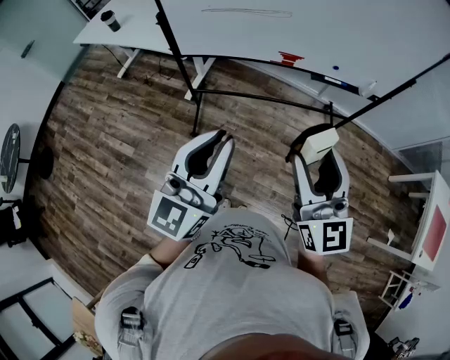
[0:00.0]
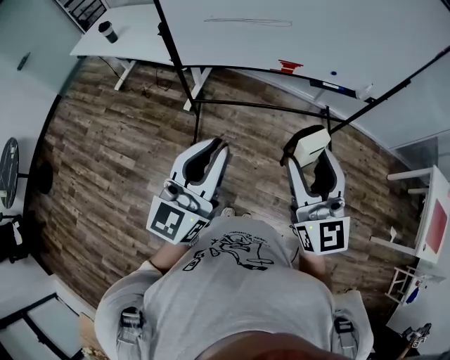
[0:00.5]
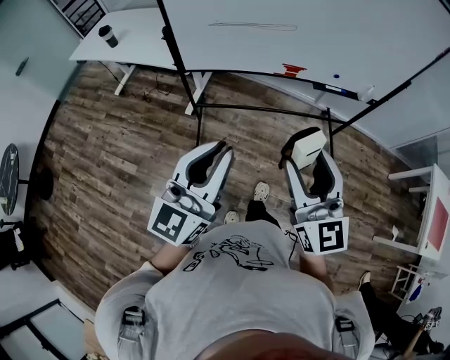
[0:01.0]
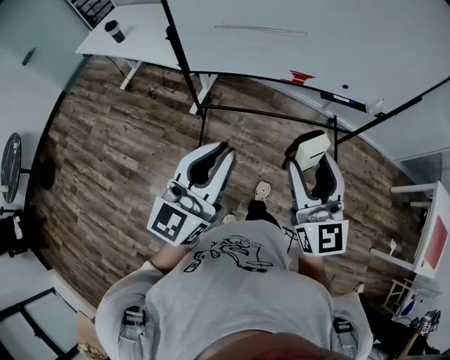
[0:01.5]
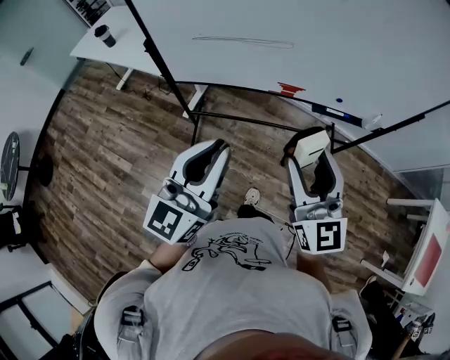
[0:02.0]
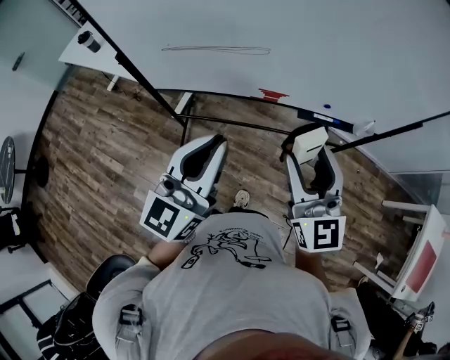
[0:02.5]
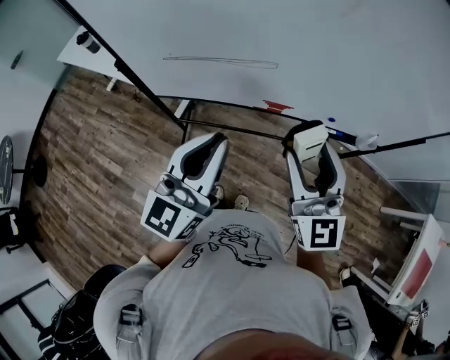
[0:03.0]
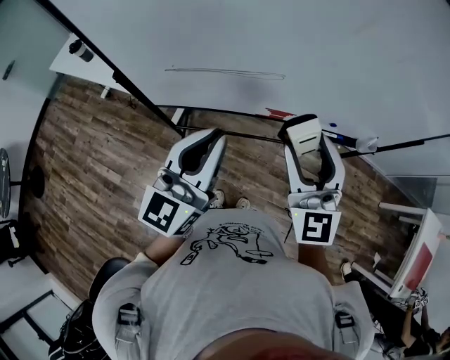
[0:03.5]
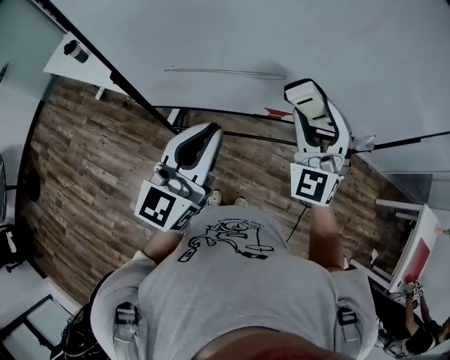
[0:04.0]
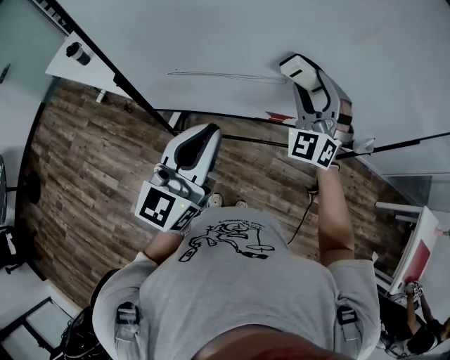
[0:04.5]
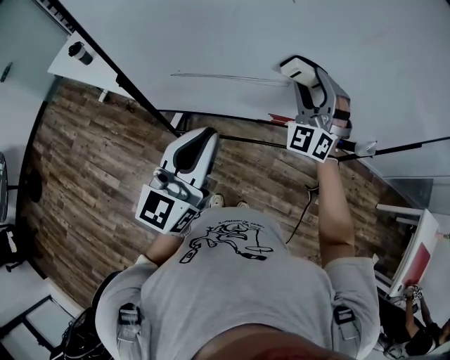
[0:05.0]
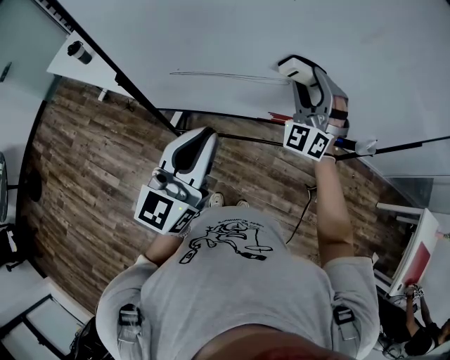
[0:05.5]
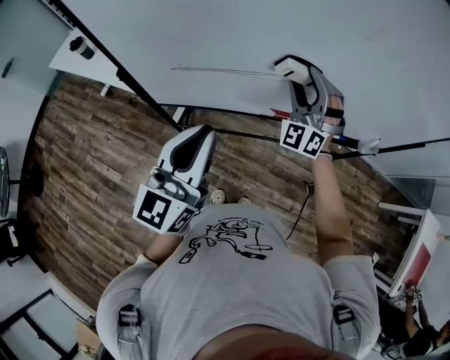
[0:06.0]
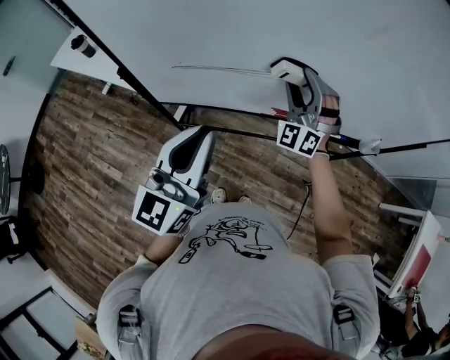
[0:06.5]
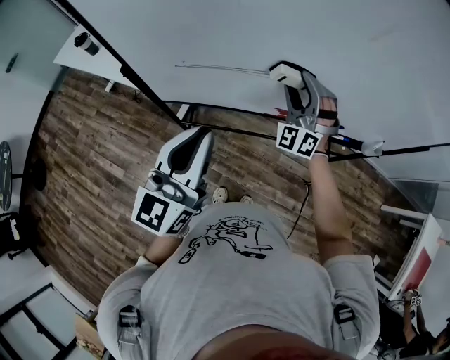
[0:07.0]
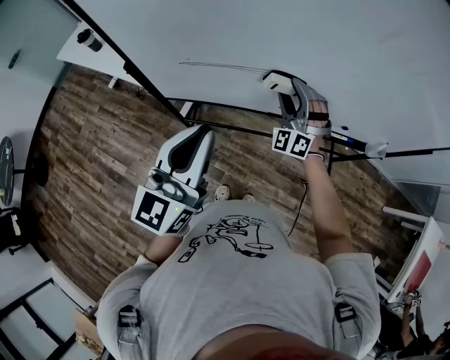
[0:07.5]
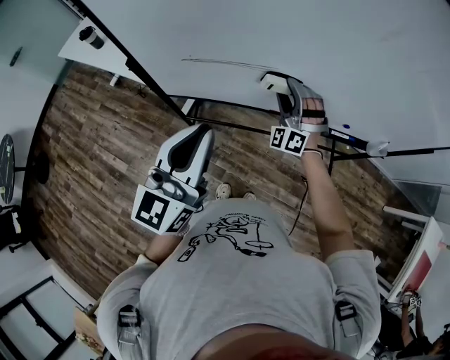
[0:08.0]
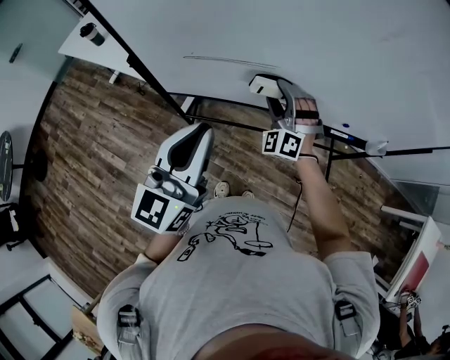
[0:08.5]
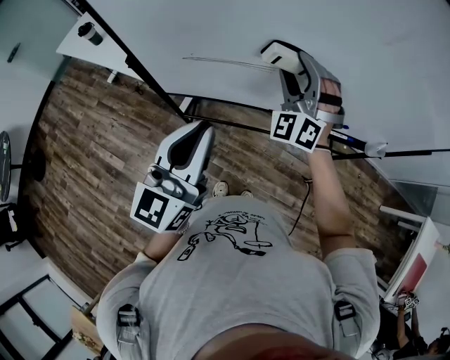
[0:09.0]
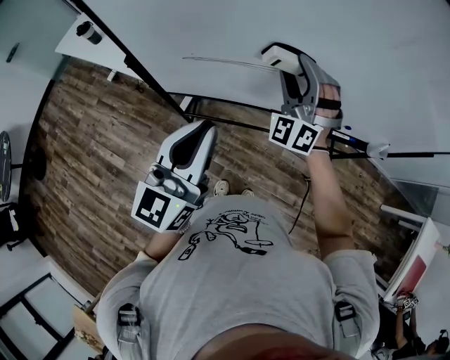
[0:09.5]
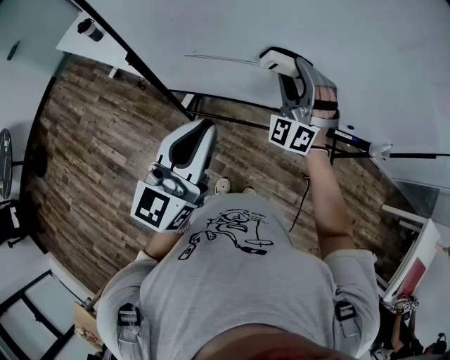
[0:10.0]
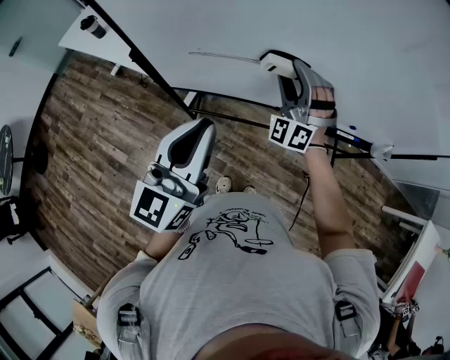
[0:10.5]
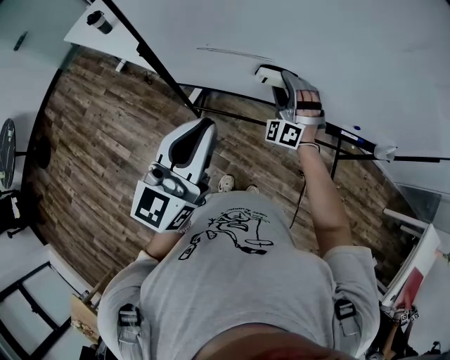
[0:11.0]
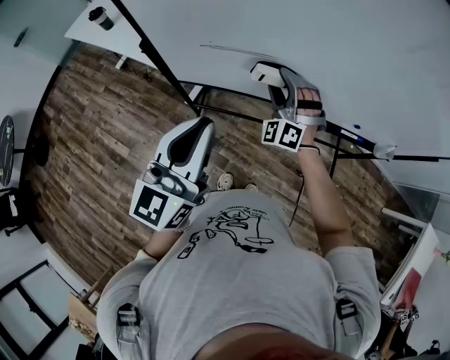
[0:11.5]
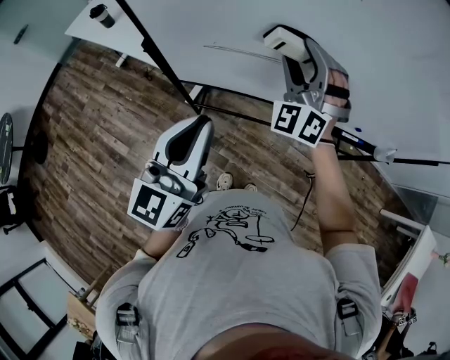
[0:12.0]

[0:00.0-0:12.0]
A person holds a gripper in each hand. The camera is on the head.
0:00.0 to 0:02.0: The grippers both shift forward by approximately 15 cm.
0:02.0 to 0:04.0: Both grippers travel together forward, about 25 cm. The right gripper rotates around the line of its fingers by about 40 degrees, counterclockwise from behind.
0:04.0 to 0:06.0: The right gripper is displaced forward by approximately 10 cm, and swivels about 20 degrees.
0:06.0 to 0:08.0: The right gripper travels downward by roughly 10 cm.
0:08.0 to 0:10.0: The right gripper goes about 10 cm upward.
0:10.0 to 0:12.0: The right gripper goes downward and returns, approximately 10 cm each way.

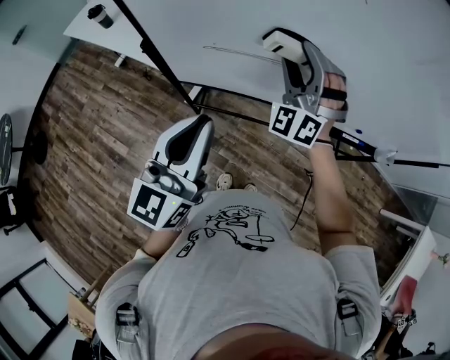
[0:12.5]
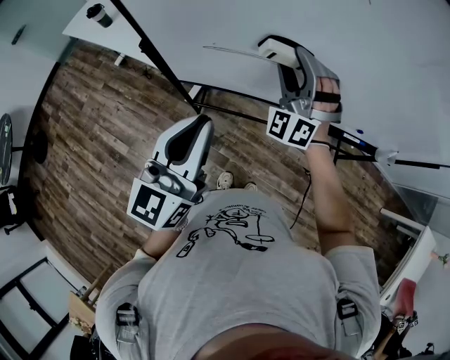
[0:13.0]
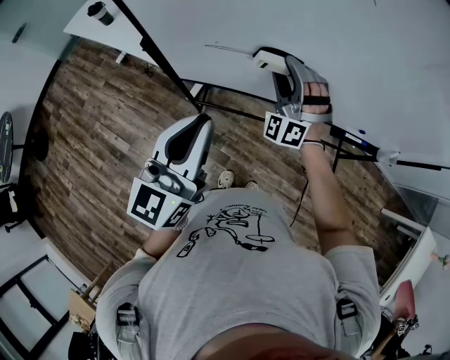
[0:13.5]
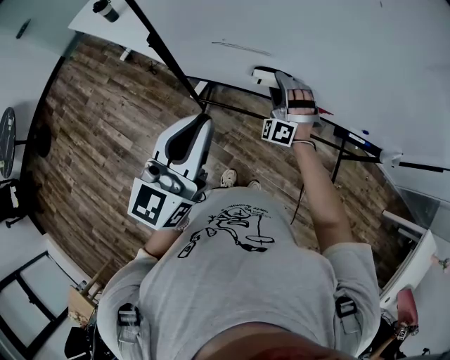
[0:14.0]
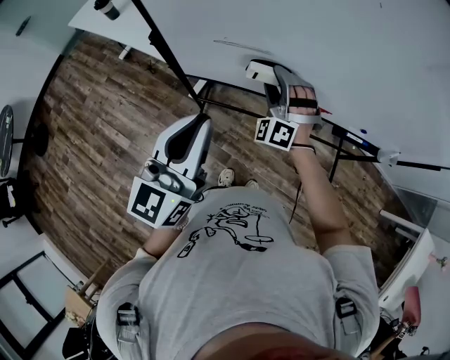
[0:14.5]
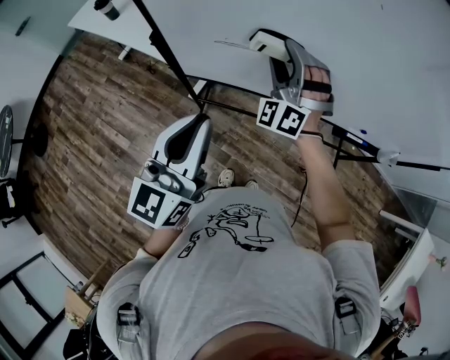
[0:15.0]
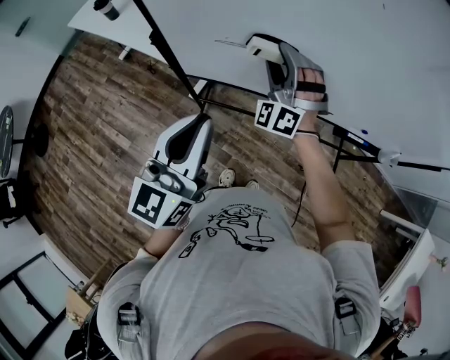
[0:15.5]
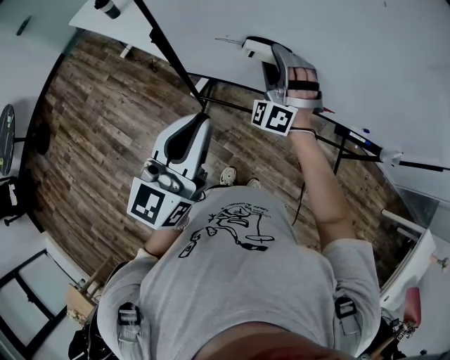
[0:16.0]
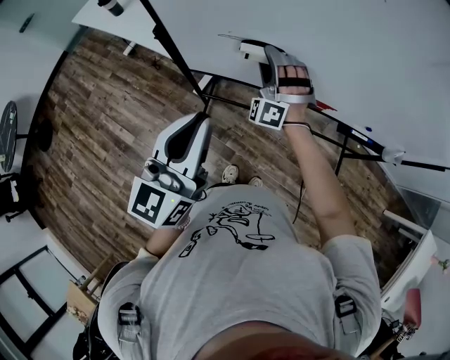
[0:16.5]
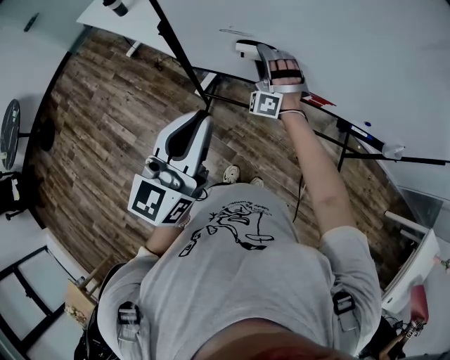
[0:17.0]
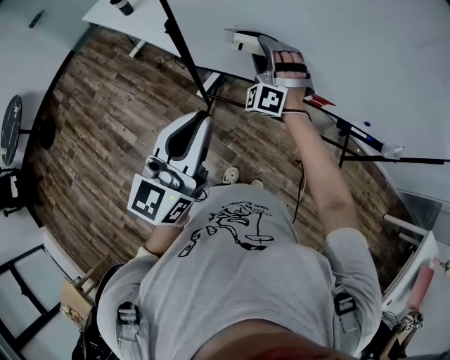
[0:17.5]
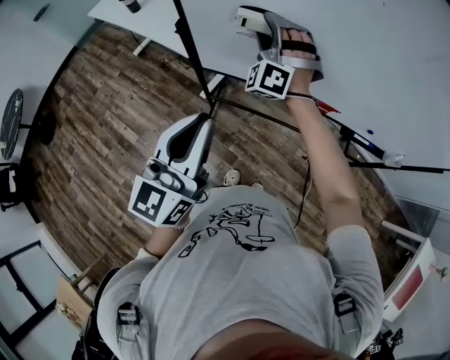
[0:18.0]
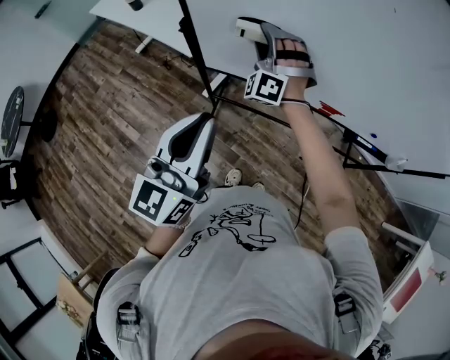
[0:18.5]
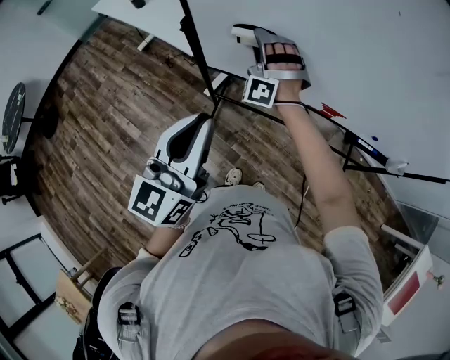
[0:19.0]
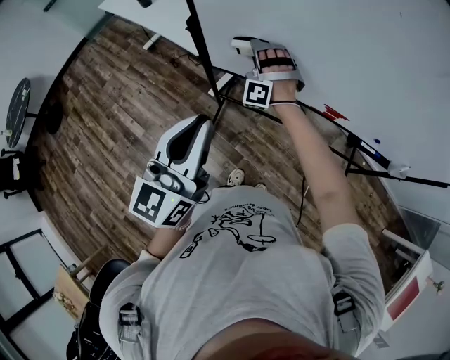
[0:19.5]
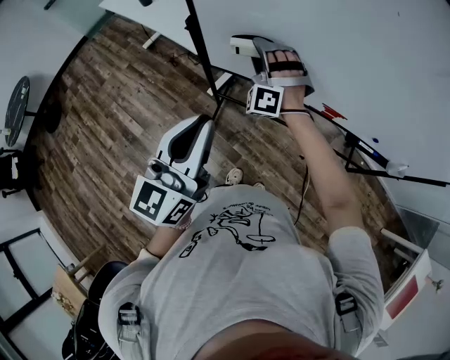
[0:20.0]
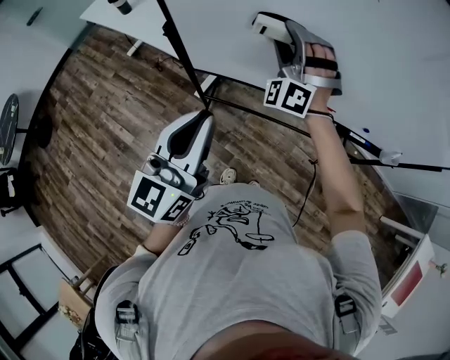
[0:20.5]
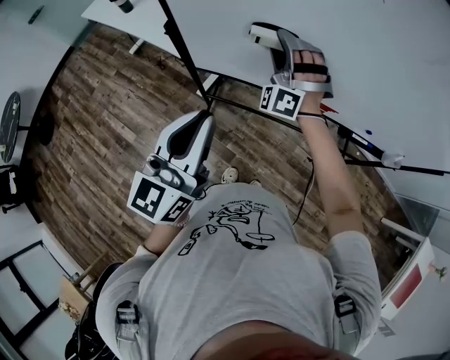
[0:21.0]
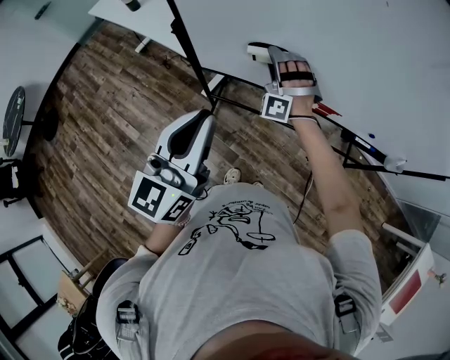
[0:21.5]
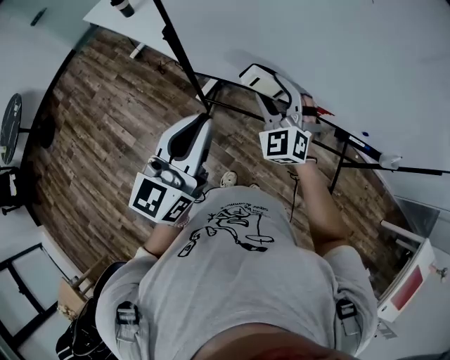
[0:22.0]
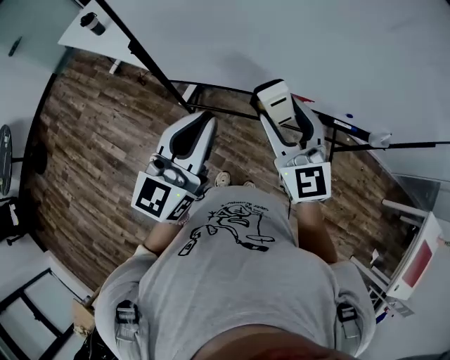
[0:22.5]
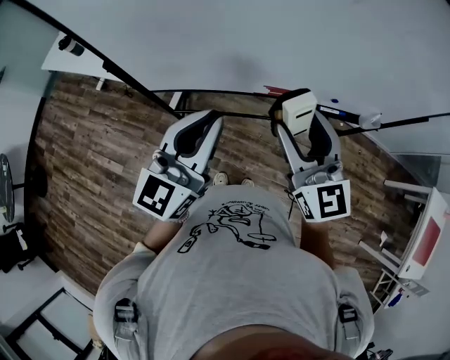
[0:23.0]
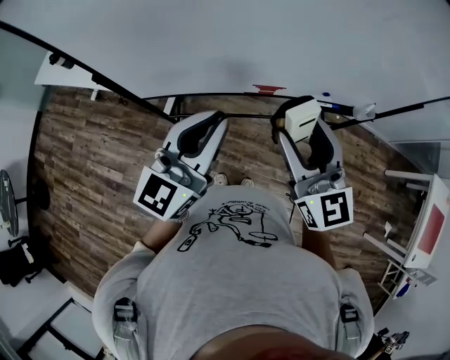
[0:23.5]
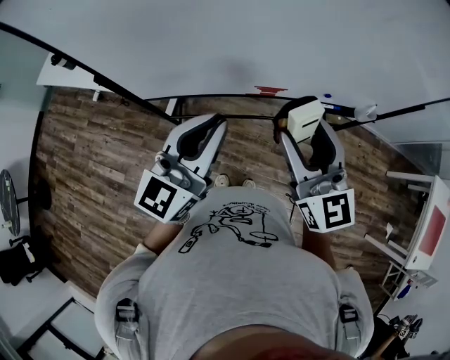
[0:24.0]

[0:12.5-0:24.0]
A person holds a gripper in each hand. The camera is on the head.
0:12.5 to 0:14.5: The right gripper shifts about 15 cm downward.
0:14.5 to 0:16.5: The right gripper travels upward and back again, about 10 cm each way.
0:16.5 to 0:18.5: The left gripper moves some 5 cm. Meanwhile the right gripper goes up and down, some 15 cm each way, reversing 2 times.
0:20.0 to 0:22.0: The right gripper goes up and down, approximately 15 cm each way, reversing 2 times, and swivels roughly 40 degrees.
0:22.0 to 0:24.0: The right gripper shifts some 25 cm to the right, upward and backward, and rolls clockwise, seen from behind, by roughly 40 degrees. The left gripper goes roughly 15 cm to the right, and changes its angle by about 20 degrees.

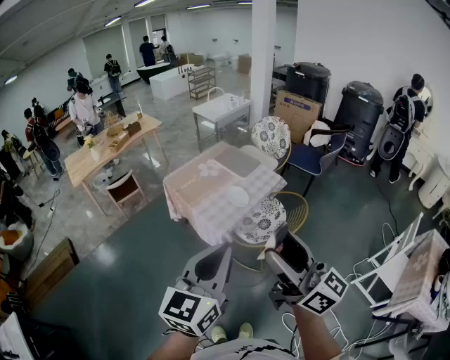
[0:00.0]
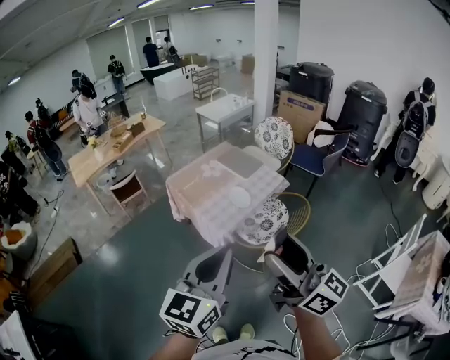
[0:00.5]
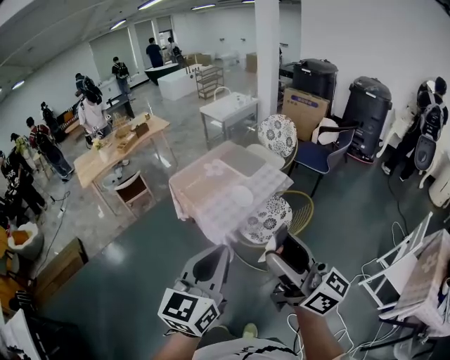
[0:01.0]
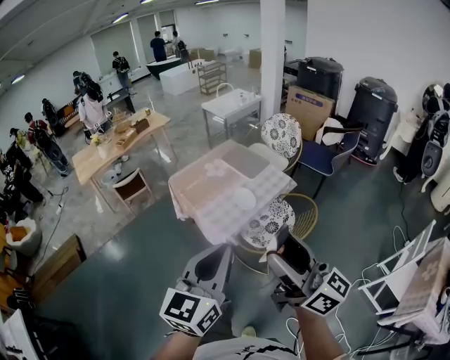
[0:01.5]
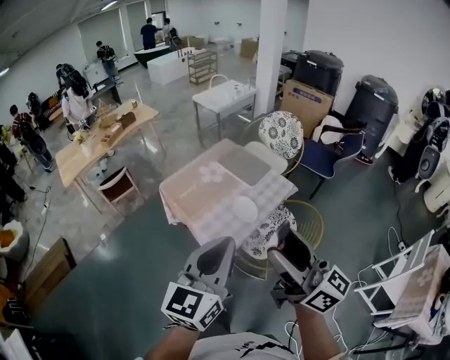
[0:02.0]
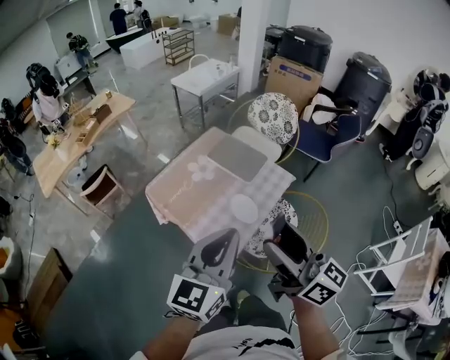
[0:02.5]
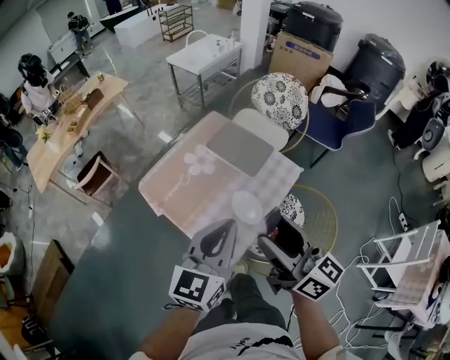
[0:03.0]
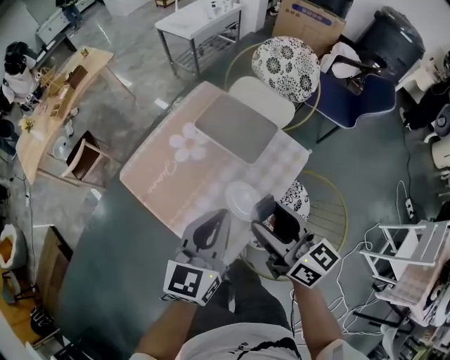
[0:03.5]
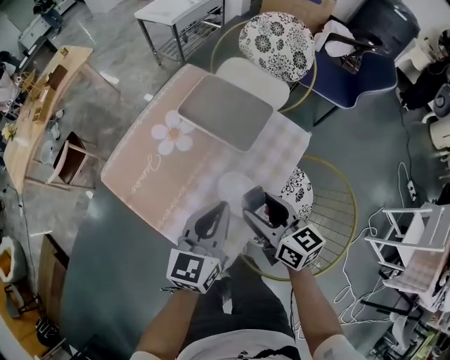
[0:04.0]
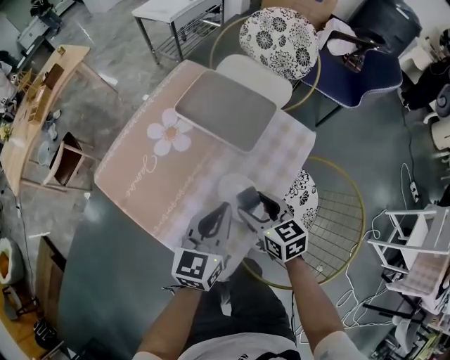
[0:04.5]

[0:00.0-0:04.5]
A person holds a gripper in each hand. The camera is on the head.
0:00.0 to 0:02.0: Both grippers travel together forward, roughly 20 cm.
0:02.0 to 0:04.5: The two grippers go some 60 cm downward and forward. The left gripper turns by some 20 degrees. The right gripper tilts its fingers roughly 50 degrees downward.
